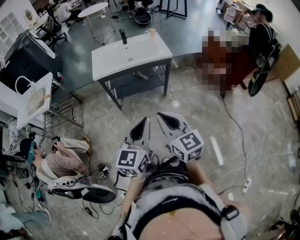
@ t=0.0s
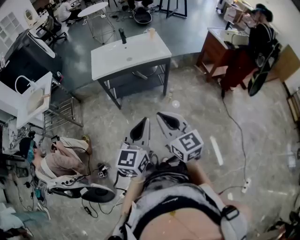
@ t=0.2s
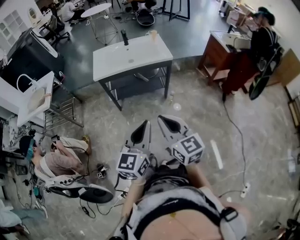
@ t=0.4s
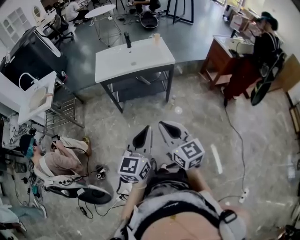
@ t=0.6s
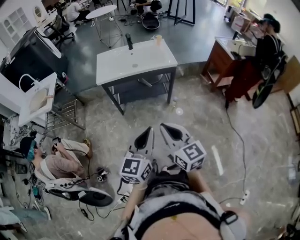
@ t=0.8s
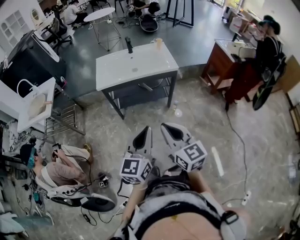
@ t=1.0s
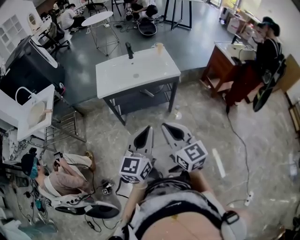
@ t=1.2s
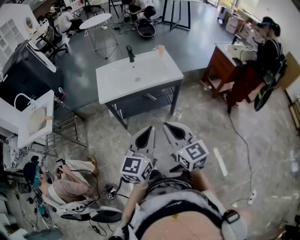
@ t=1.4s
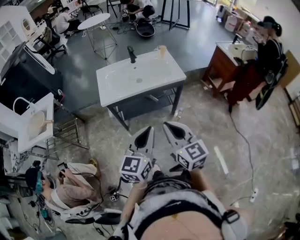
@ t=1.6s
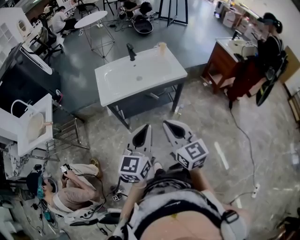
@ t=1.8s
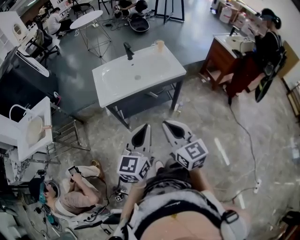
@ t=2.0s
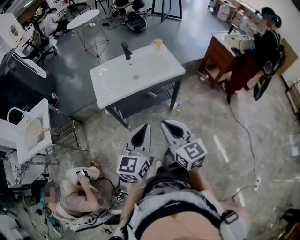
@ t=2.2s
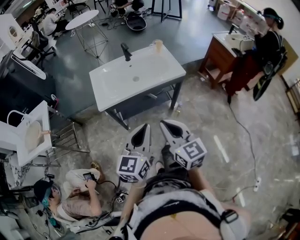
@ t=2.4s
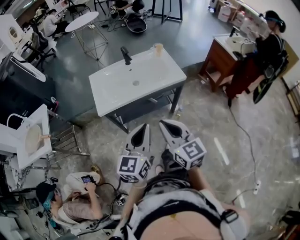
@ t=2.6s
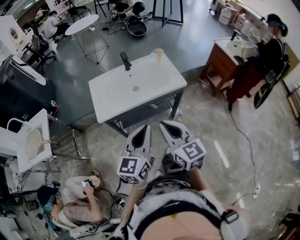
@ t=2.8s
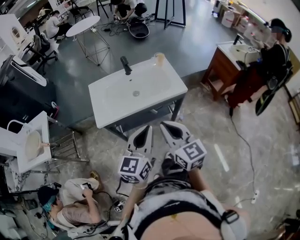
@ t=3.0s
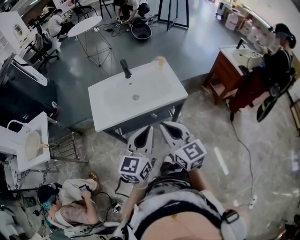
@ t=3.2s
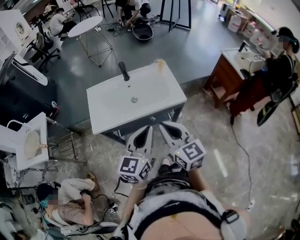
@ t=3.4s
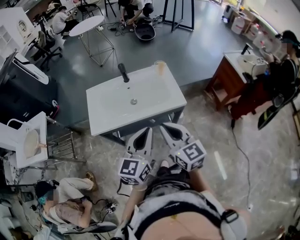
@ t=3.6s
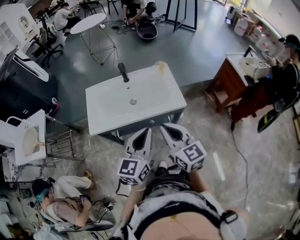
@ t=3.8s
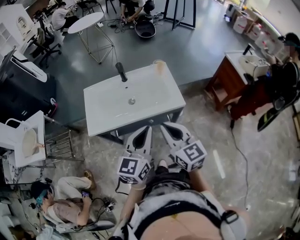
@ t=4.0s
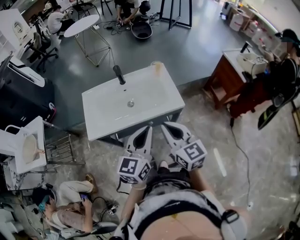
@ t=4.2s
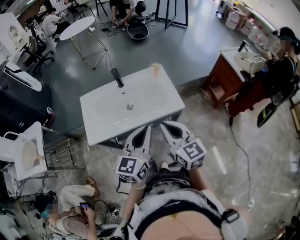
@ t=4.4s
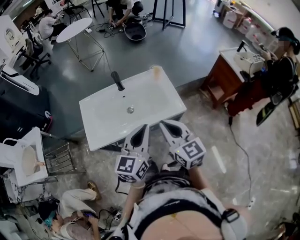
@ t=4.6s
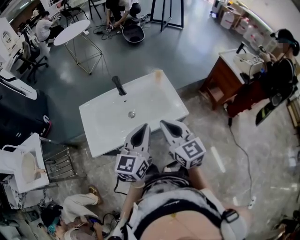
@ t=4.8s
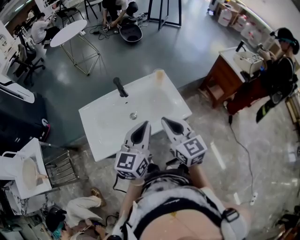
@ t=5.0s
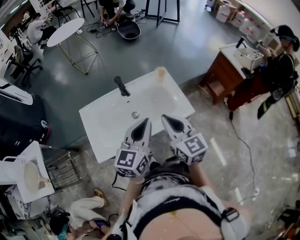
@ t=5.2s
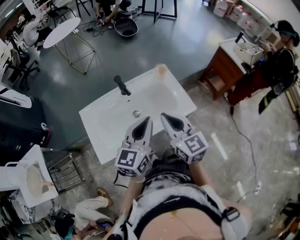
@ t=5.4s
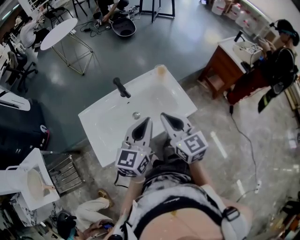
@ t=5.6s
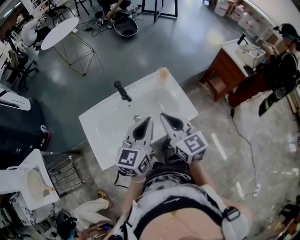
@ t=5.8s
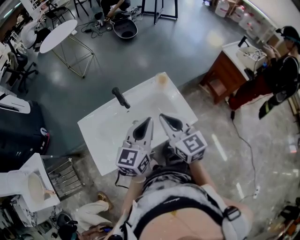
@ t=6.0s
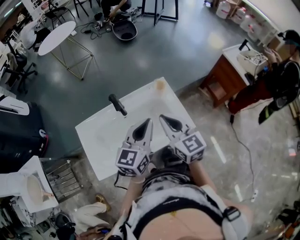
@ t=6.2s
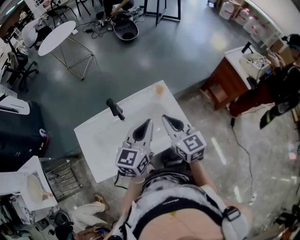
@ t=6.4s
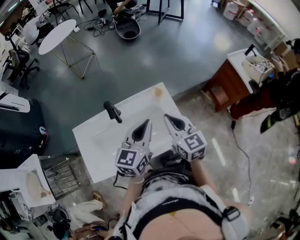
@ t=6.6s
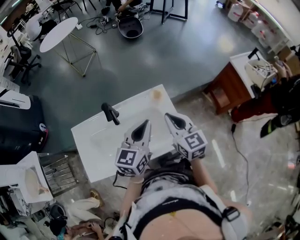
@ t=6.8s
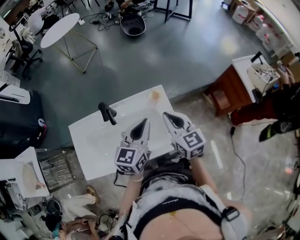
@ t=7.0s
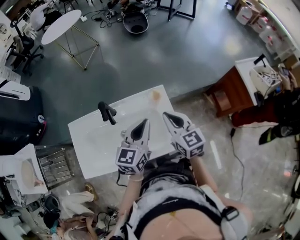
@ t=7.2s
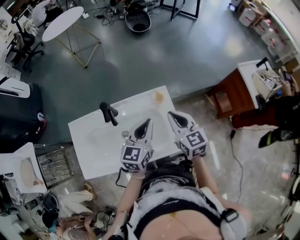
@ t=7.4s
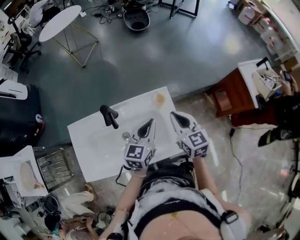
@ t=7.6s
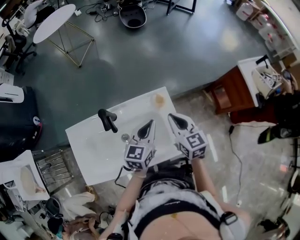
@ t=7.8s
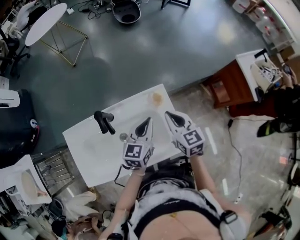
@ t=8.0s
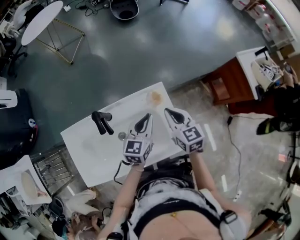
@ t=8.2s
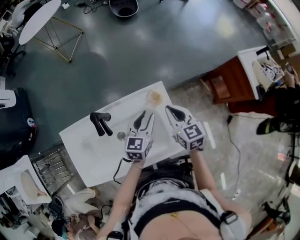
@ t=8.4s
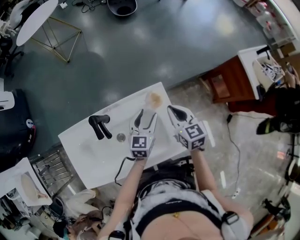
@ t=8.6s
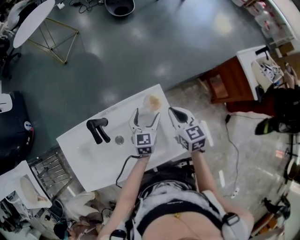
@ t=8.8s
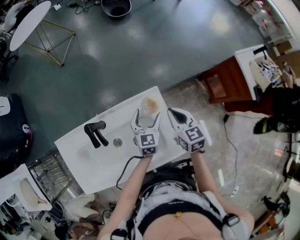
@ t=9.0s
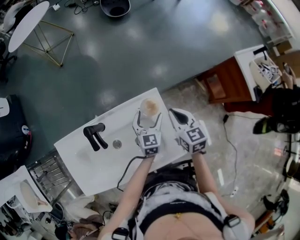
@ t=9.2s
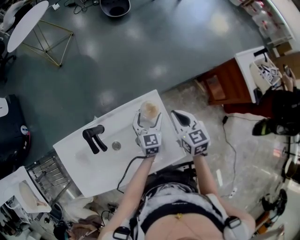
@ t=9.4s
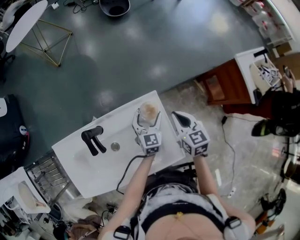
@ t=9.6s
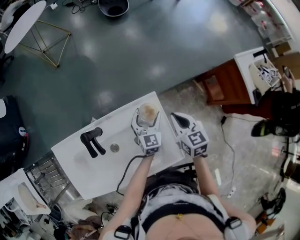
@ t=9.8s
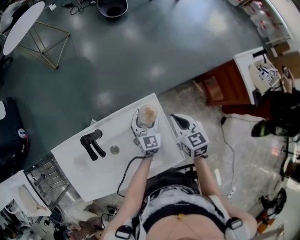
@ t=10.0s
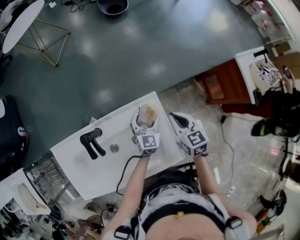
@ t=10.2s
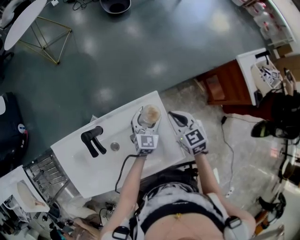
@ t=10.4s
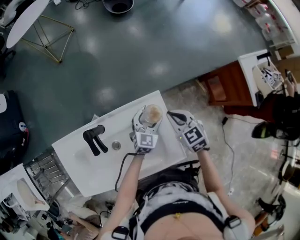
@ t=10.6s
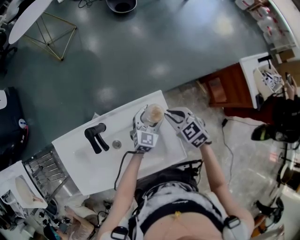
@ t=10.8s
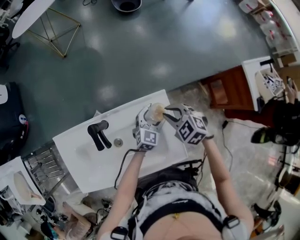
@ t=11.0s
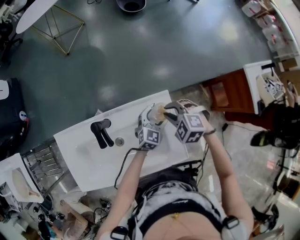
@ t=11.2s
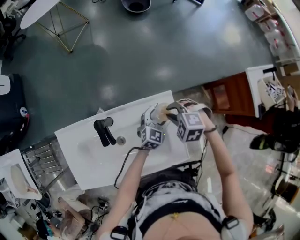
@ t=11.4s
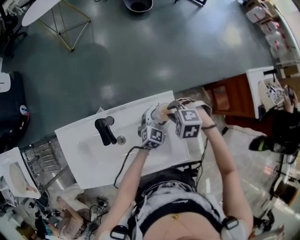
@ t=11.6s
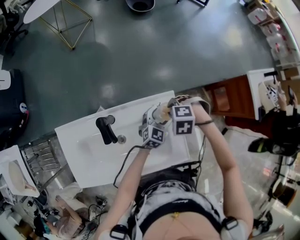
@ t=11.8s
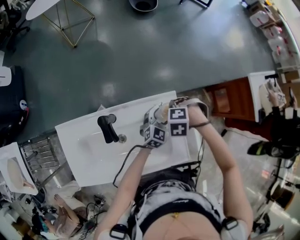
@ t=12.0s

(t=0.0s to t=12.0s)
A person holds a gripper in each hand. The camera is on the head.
t=0.0s - t=1.6s: The two grippers go about 20 cm forward.
t=1.6s - t=3.0s: The two grippers go approximately 15 cm forward.
t=3.0s - t=4.4s: Both grippers move forward and to the right, roughly 15 cm.
t=4.4s - t=6.0s: The grippers both shift forward by about 20 cm.
t=6.0s - t=7.6s: The right gripper travels forward, to the right and downward by about 20 cm. Meanwhile the left gripper travels forward, downward and to the right by roughly 20 cm.
t=7.6s - t=9.0s: The left gripper goes approximately 20 cm downward and forward, and opens its fingers. The right gripper travels downward and forward by approximately 10 cm.
t=9.0s - t=10.4s: The grippers move only a little.
t=10.4s - t=12.0s: The right gripper ends up roughly 10 cm from where it was, and angles its fingers downward, by about 50 degrees.

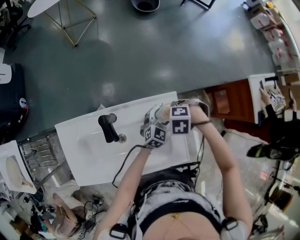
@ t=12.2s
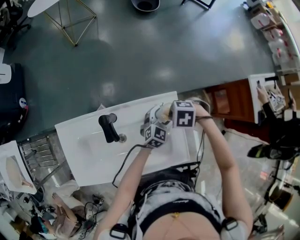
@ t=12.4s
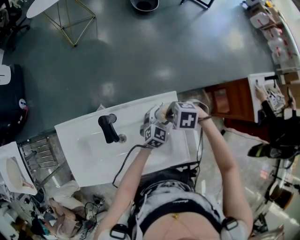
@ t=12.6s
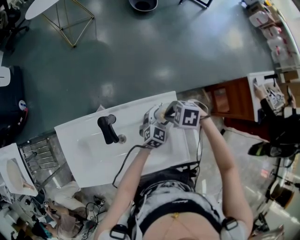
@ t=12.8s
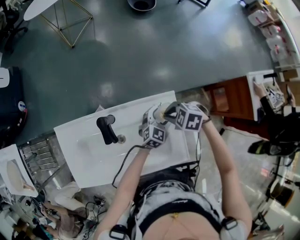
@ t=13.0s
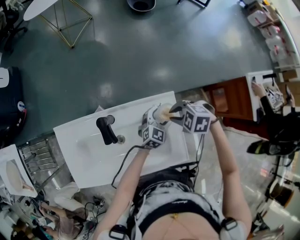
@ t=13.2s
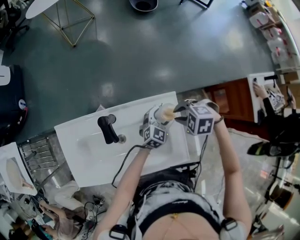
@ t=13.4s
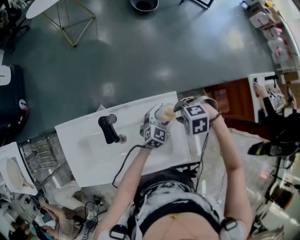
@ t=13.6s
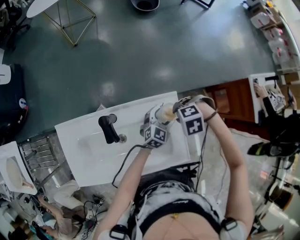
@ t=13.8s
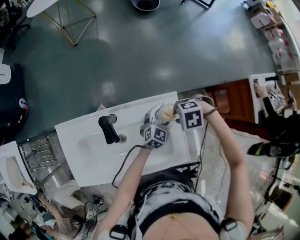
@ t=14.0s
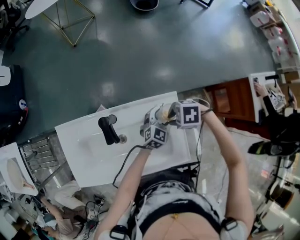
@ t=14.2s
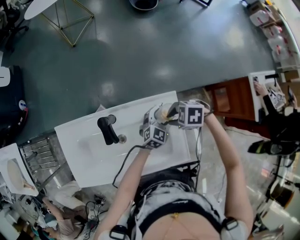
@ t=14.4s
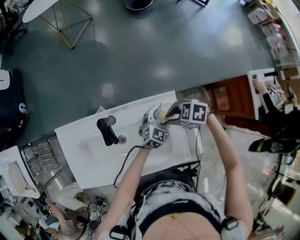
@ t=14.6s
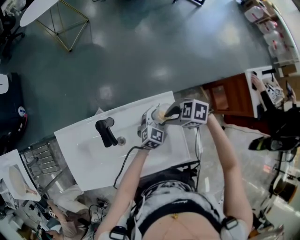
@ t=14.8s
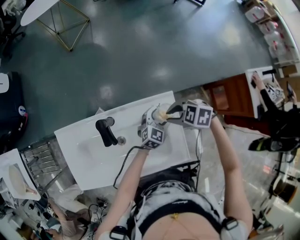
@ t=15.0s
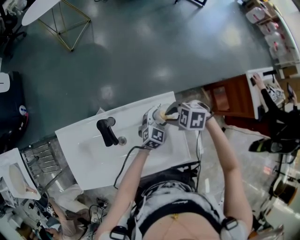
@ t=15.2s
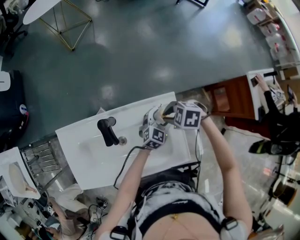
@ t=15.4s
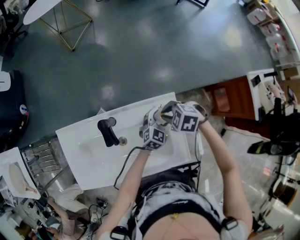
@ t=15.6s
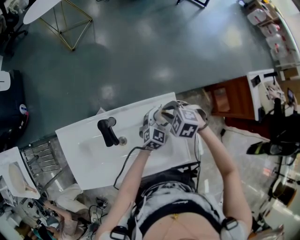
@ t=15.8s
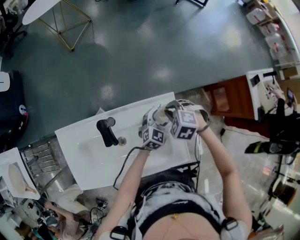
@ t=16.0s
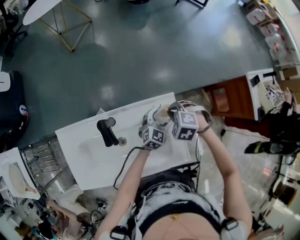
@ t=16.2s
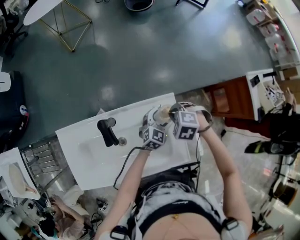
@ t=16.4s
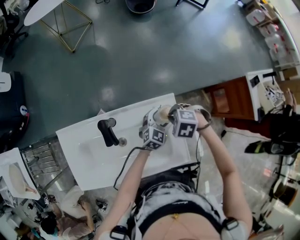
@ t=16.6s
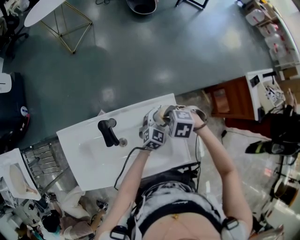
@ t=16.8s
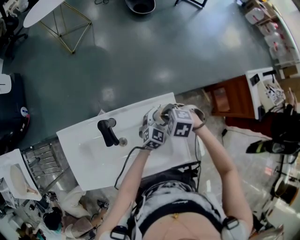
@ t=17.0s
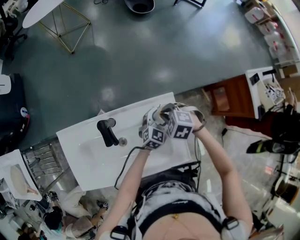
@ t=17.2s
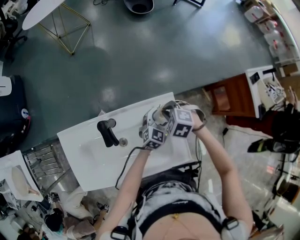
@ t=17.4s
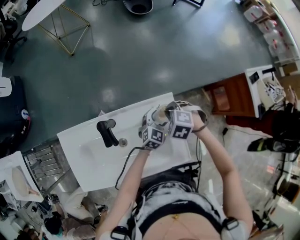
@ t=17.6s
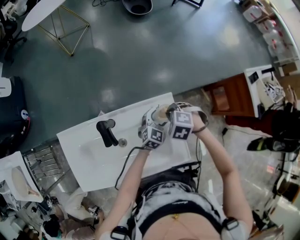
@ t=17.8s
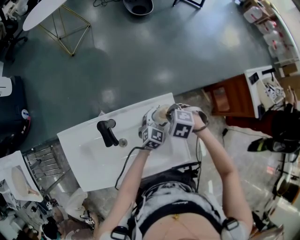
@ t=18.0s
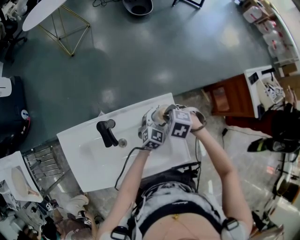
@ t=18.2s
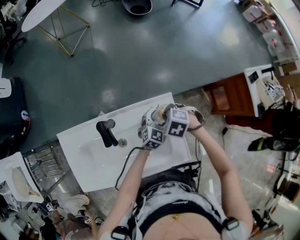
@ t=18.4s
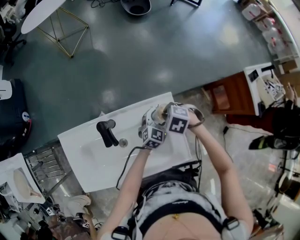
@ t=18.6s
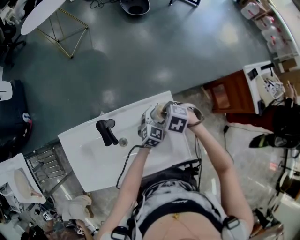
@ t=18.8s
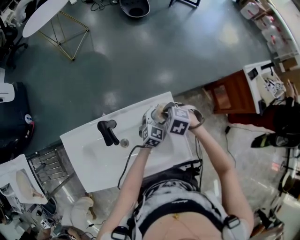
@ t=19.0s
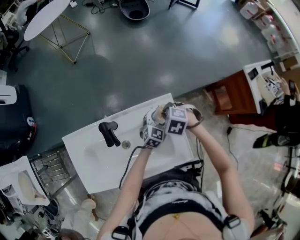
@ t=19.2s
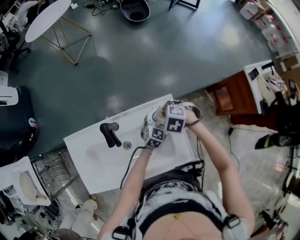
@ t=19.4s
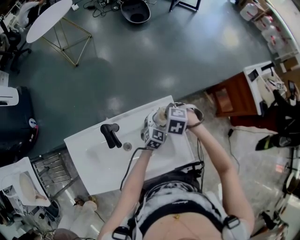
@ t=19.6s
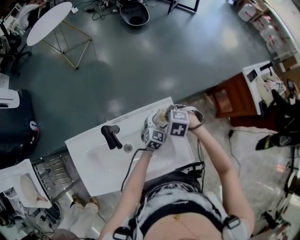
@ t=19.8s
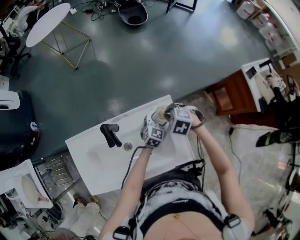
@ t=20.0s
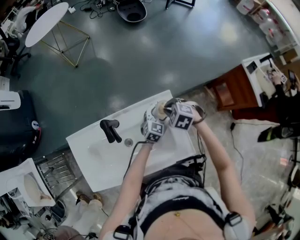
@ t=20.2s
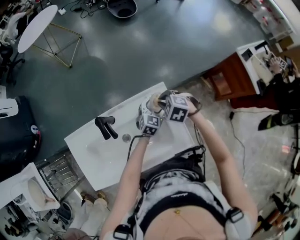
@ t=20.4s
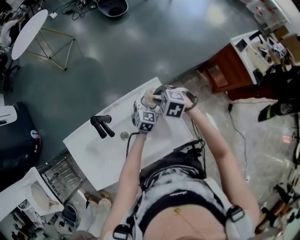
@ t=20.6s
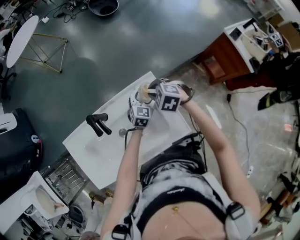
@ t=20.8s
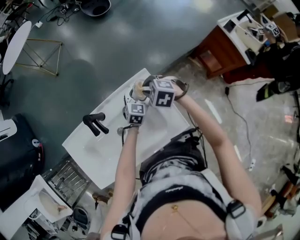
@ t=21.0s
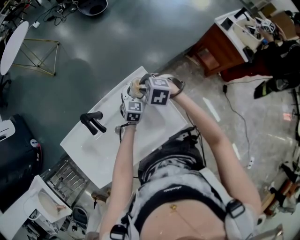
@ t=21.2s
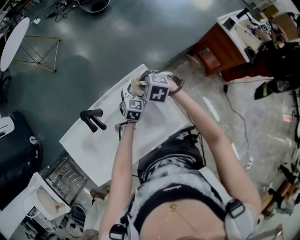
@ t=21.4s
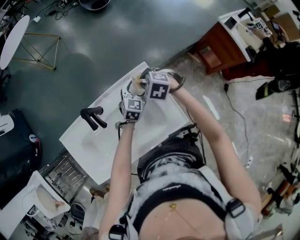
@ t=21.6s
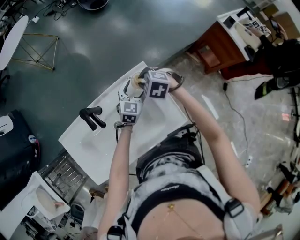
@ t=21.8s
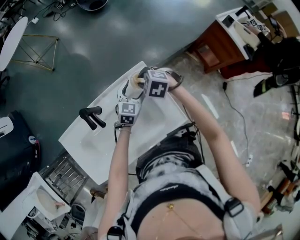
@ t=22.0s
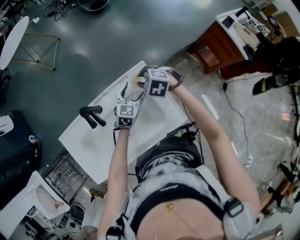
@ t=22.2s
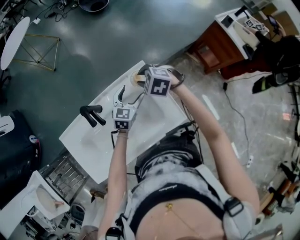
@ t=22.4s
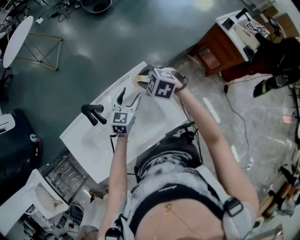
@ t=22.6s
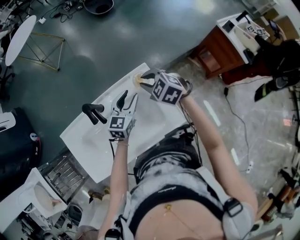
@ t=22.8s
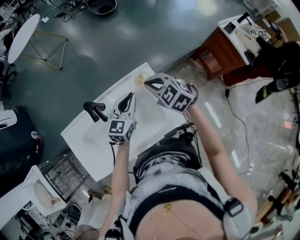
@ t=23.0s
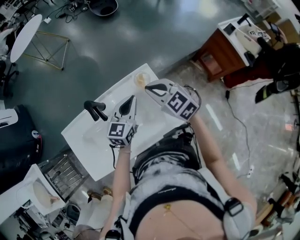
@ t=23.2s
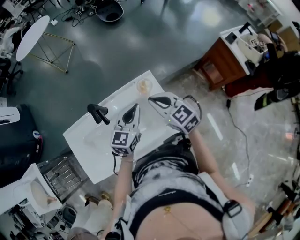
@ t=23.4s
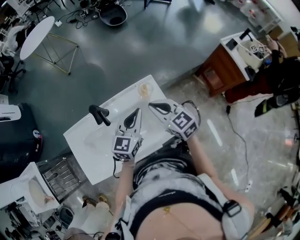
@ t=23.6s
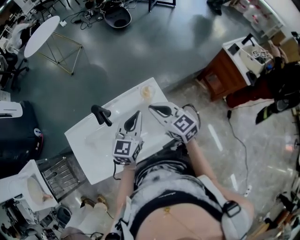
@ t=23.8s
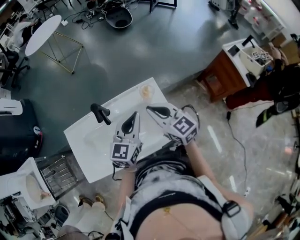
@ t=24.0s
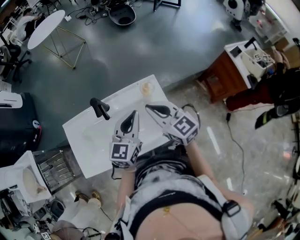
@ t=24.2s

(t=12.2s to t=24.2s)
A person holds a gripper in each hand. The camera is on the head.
t=12.2s - t=13.8s: The right gripper opens.
t=13.8s - t=15.2s: The right gripper changes its angle by roughly 30 degrees.
t=16.6s - t=19.8s: There are only small adjustments of the grippers.
t=19.8s - t=21.2s: The right gripper changes its angle by some 20 degrees.
t=21.2s - t=22.6s: The left gripper is displaced to the left and upward by approximately 10 cm.
t=22.6s - t=24.2s: The grippers both shift upward and backward by approximately 20 cm. The right gripper tilts its fingers some 40 degrees upward, and closes. Meanwhile the left gripper turns by some 20 degrees, and closes its fingers.
